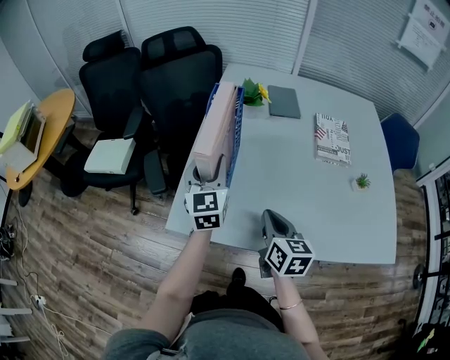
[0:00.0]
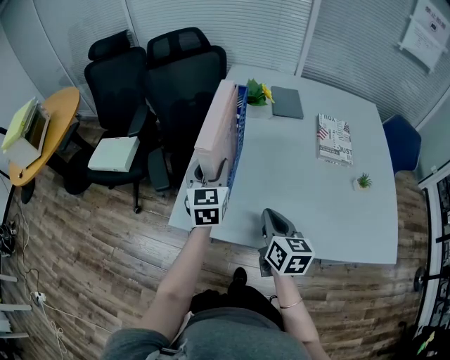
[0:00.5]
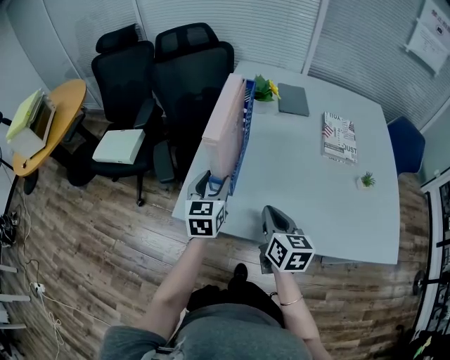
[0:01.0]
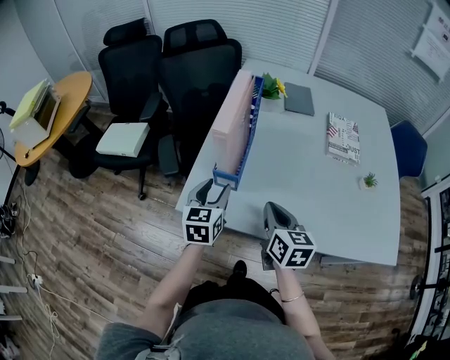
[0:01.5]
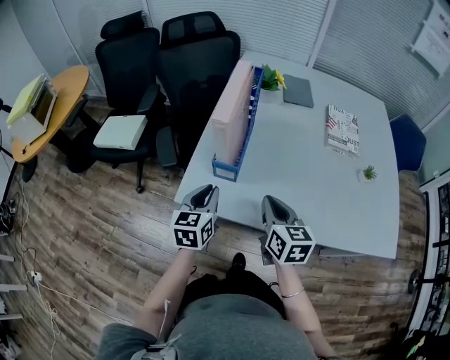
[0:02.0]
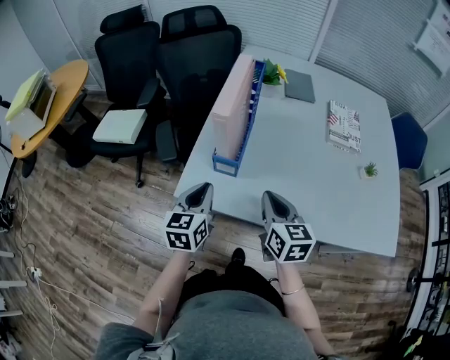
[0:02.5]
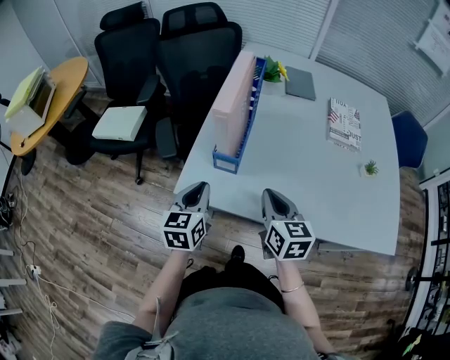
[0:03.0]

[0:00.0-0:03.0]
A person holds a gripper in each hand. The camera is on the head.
0:00.0 to 0:01.5: The left gripper heads backward and downward, covering about 15 cm, and swivels about 20 degrees.
0:01.5 to 0:03.0: The left gripper shifts some 5 cm backward, and closes.

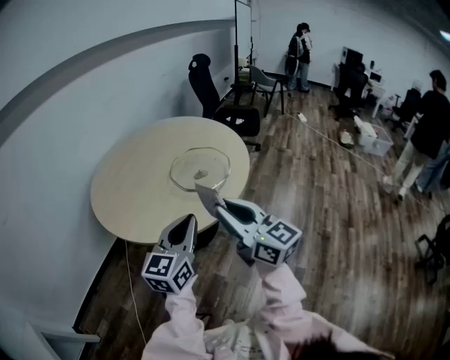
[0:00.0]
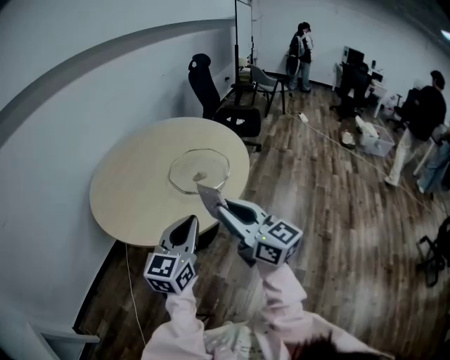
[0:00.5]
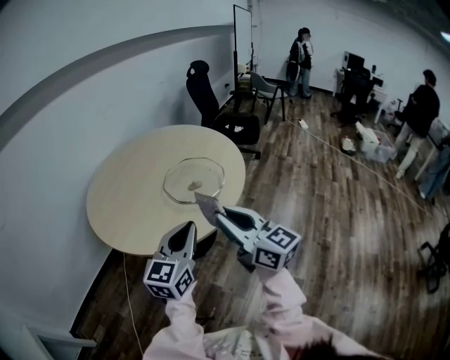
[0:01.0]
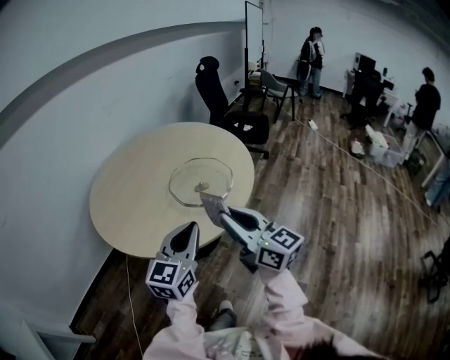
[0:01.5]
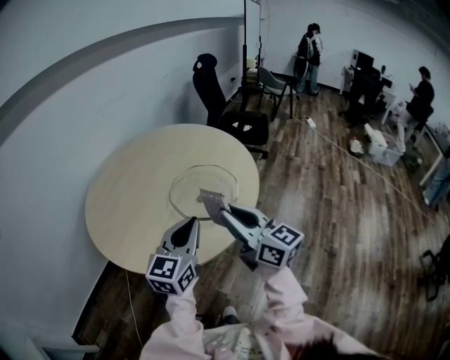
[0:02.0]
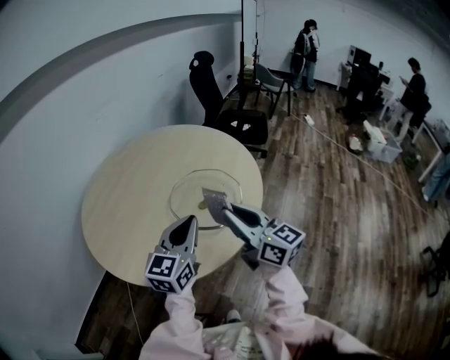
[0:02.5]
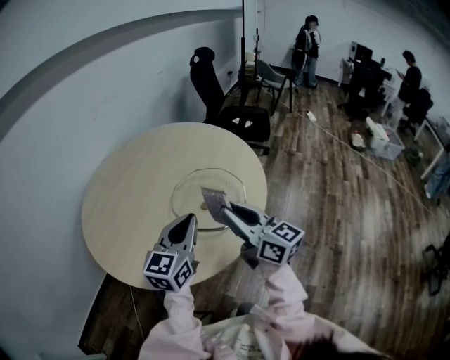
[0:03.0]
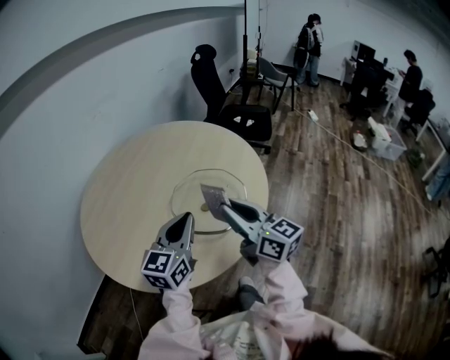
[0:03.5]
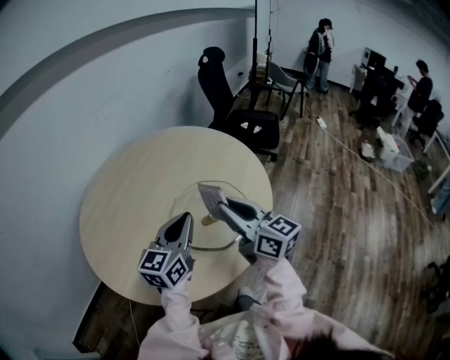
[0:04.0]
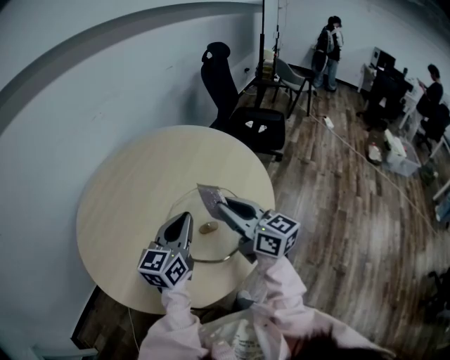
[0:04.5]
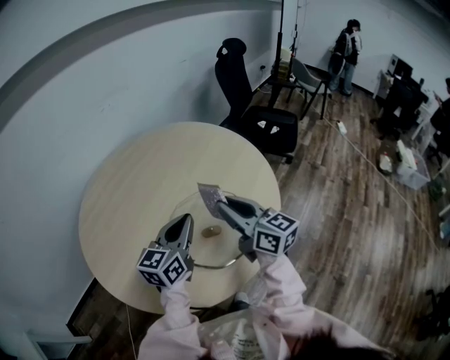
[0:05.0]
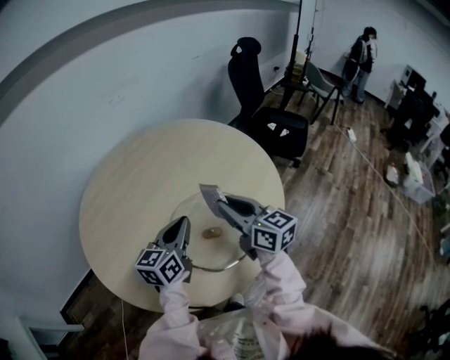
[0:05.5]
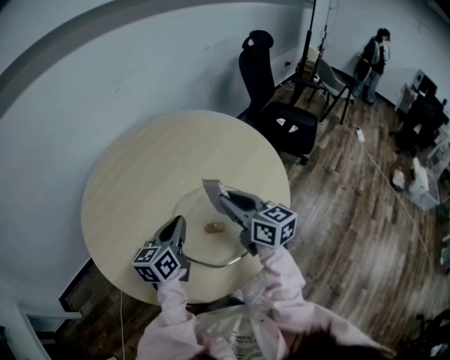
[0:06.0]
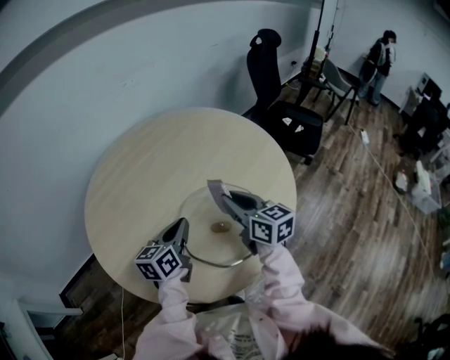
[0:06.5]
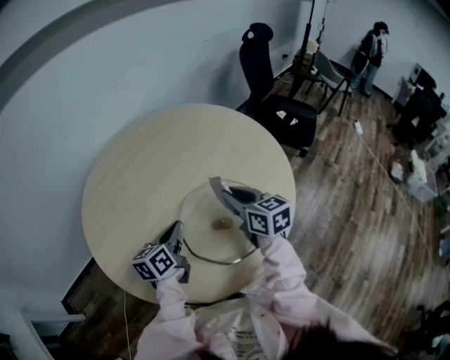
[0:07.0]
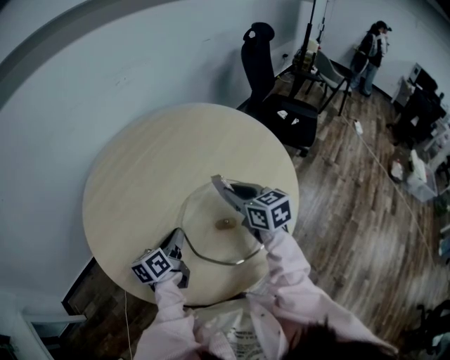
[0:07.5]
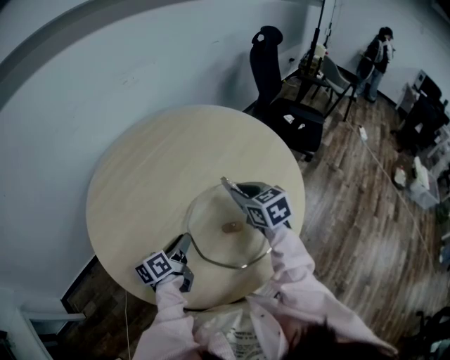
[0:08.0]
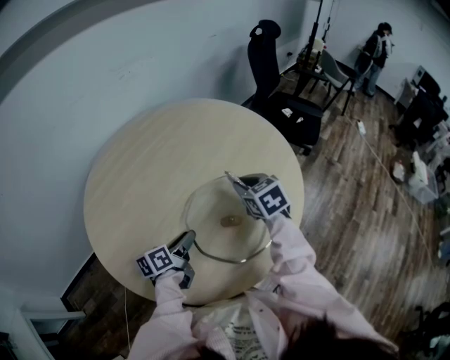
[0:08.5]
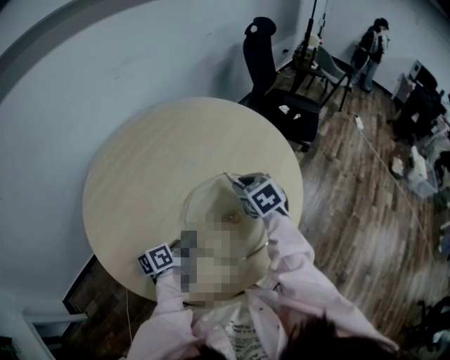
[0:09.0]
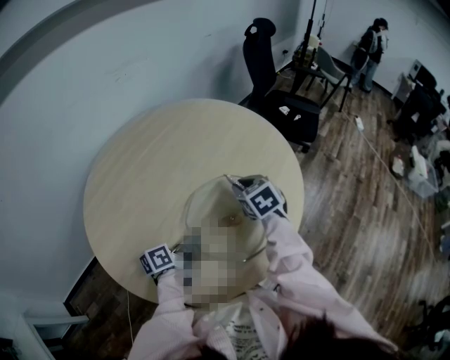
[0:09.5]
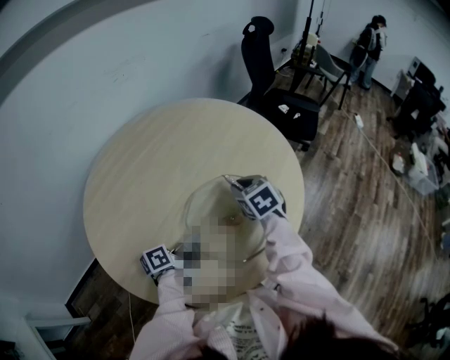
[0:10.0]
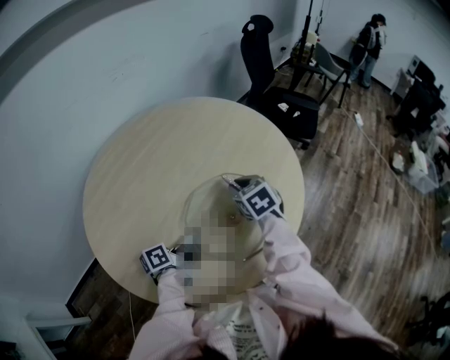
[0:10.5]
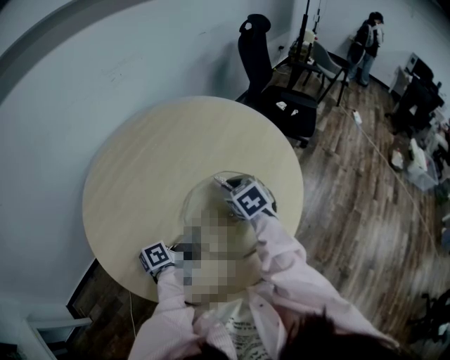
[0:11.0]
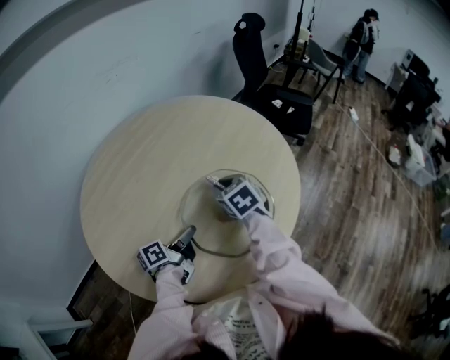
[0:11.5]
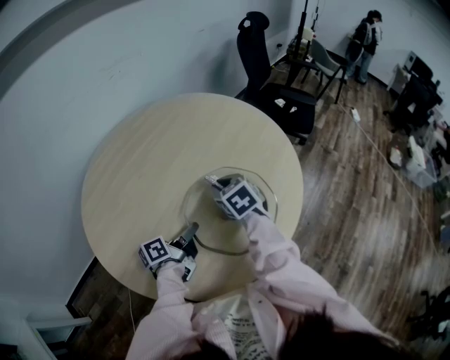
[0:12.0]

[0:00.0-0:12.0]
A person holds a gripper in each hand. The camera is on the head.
0:00.0 to 0:02.0: Both grippers move forward, some 15 cm.
0:02.0 to 0:04.0: The two grippers go approximately 15 cm forward.
0:04.0 to 0:06.0: The right gripper shifts some 15 cm forward and downward. The left gripper goes about 10 cm downward and forward, and rotates roughly 30 degrees.
0:06.0 to 0:08.0: The right gripper moves downward and forward, approximately 10 cm, and rotates approximately 30 degrees. The left gripper travels downward and to the left by some 15 cm, turns by some 30 degrees, and opens up.
0:08.0 to 0:10.0: There are only small adjustments of the grippers.
0:10.0 to 0:12.0: The right gripper heads to the left, covering about 5 cm.

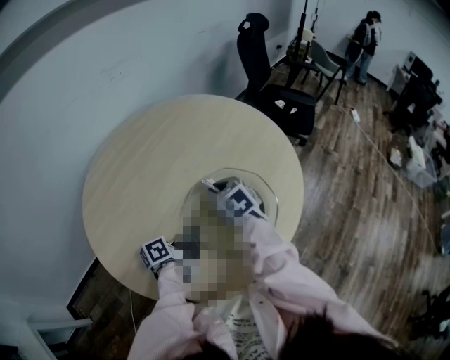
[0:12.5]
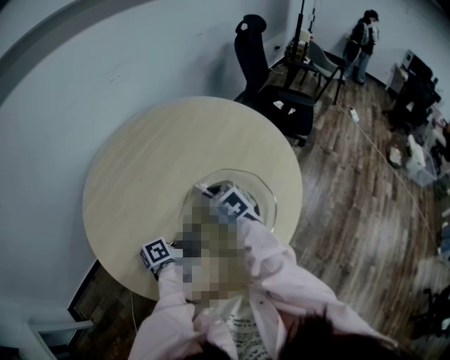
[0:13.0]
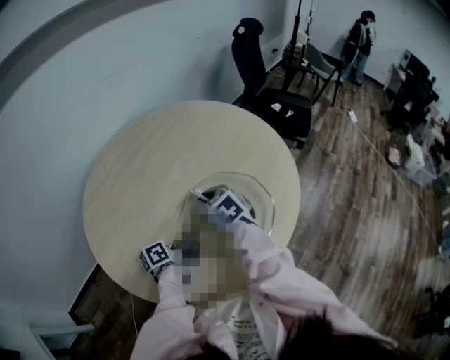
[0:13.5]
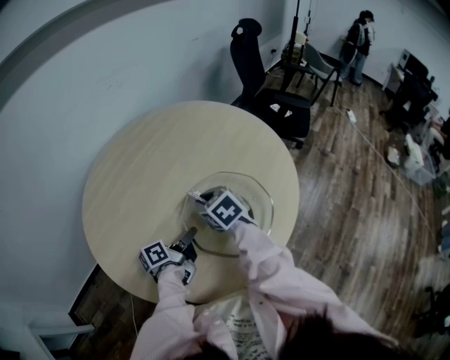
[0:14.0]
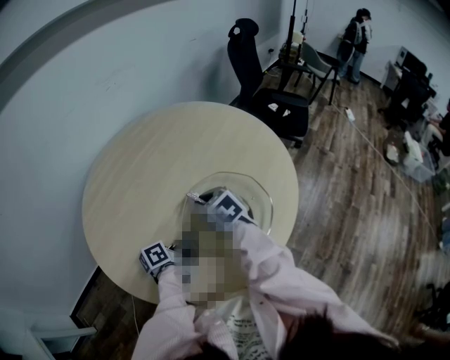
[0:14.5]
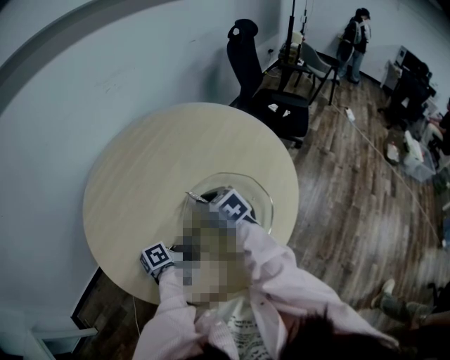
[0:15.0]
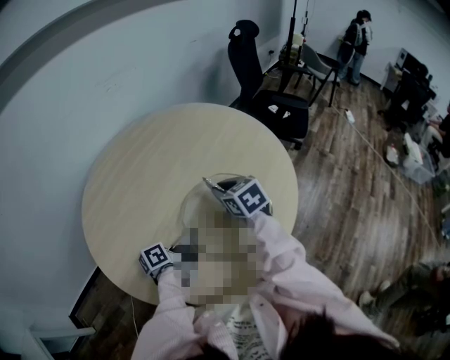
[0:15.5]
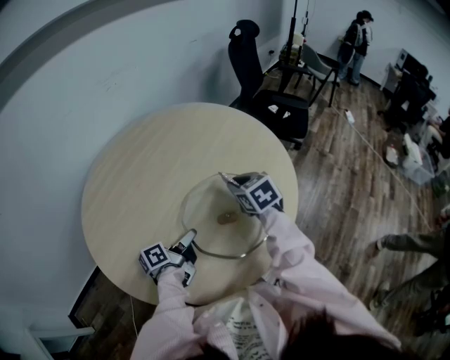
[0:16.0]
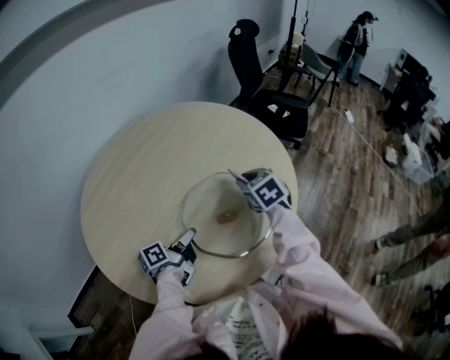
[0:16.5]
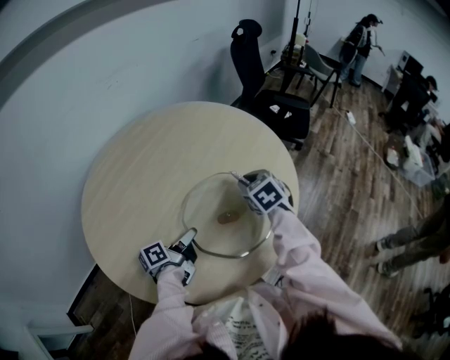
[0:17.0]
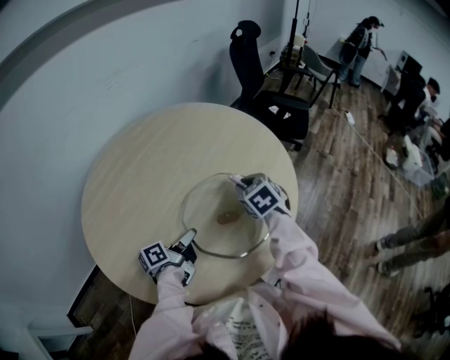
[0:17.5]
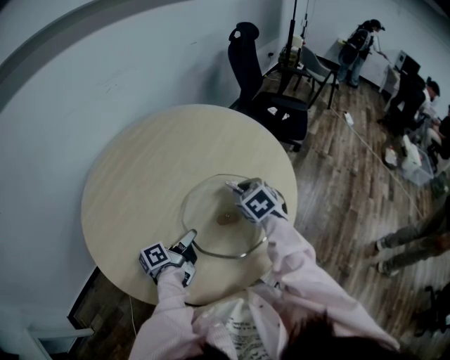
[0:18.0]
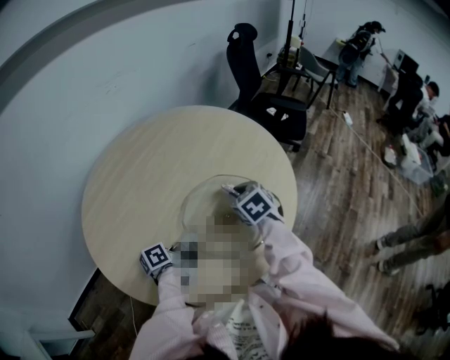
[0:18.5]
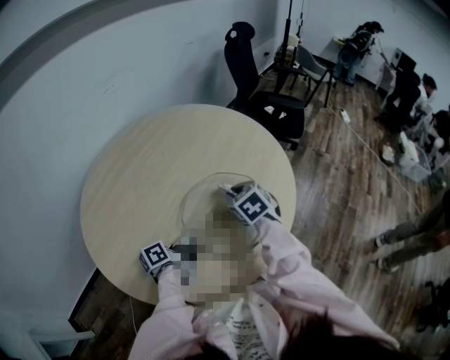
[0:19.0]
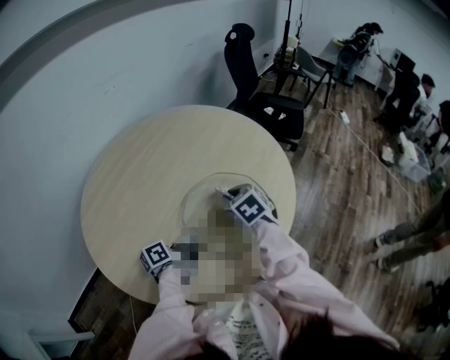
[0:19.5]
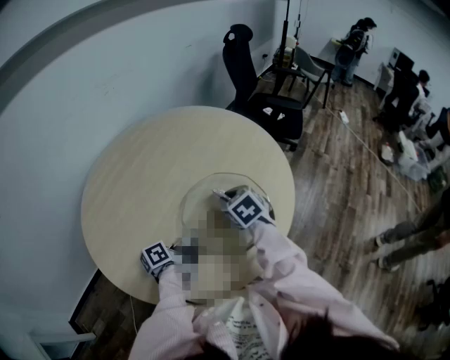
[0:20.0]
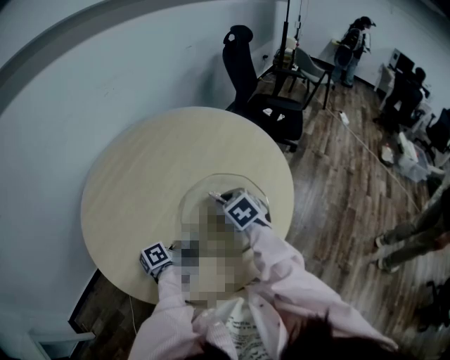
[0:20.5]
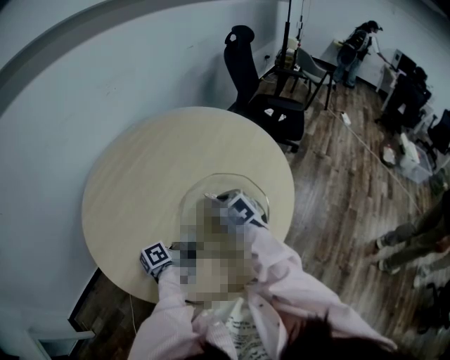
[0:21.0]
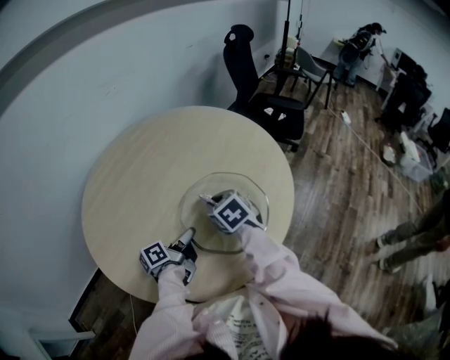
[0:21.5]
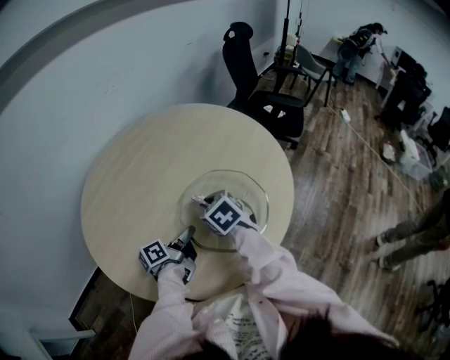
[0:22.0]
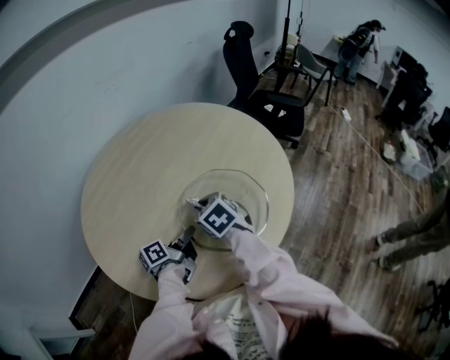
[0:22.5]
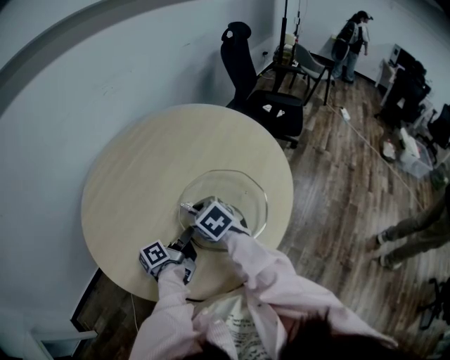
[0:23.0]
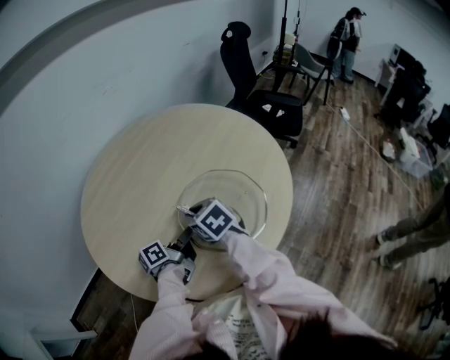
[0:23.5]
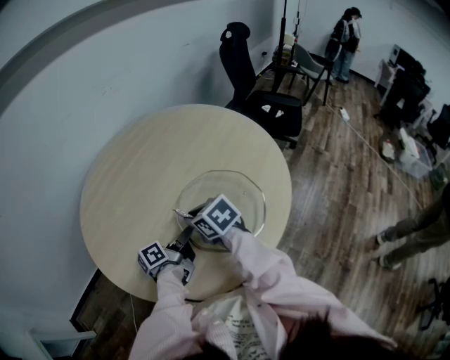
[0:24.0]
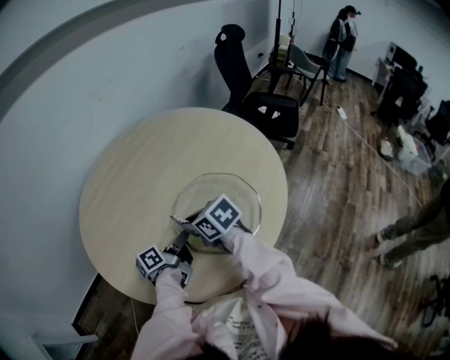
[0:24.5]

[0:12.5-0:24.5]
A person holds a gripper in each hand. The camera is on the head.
0:12.5 to 0:14.5: The grippers stay close to where they were, moving slightly.
0:14.5 to 0:16.5: The right gripper heads to the right, covering approximately 15 cm.
0:16.5 to 0:18.5: The right gripper changes place by approximately 5 cm.
0:18.5 to 0:20.5: The right gripper changes place by approximately 5 cm.
0:20.5 to 0:22.5: The right gripper is displaced to the left by roughly 5 cm.
0:22.5 to 0:24.5: The right gripper rotates roughly 20 degrees.
